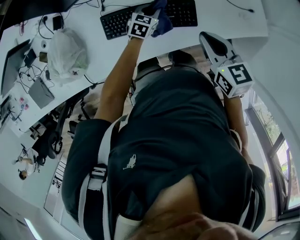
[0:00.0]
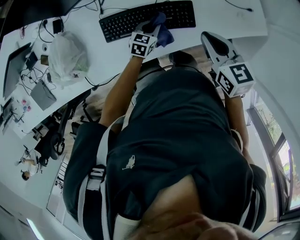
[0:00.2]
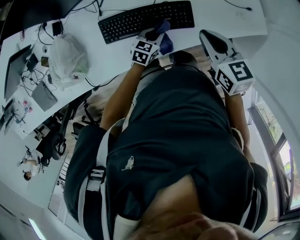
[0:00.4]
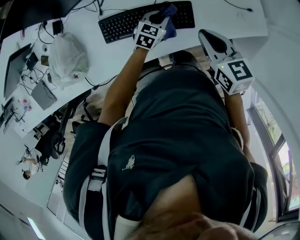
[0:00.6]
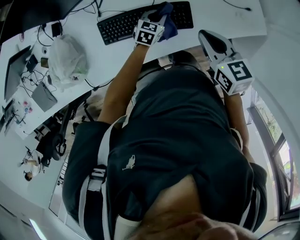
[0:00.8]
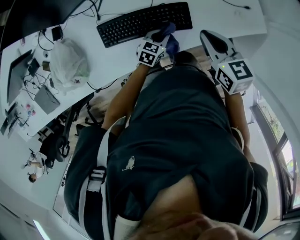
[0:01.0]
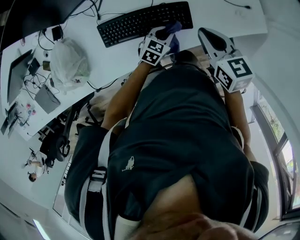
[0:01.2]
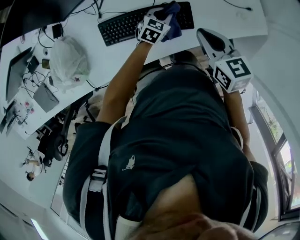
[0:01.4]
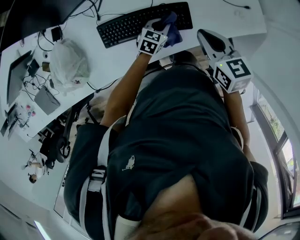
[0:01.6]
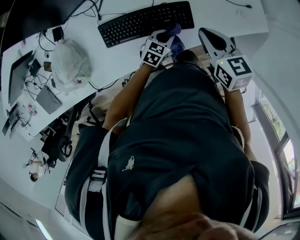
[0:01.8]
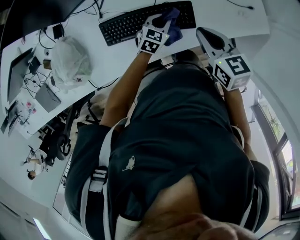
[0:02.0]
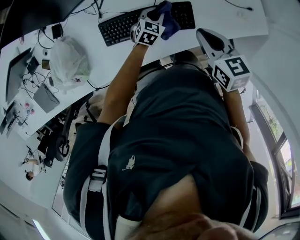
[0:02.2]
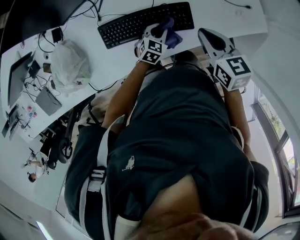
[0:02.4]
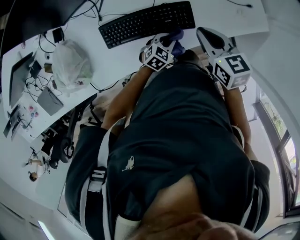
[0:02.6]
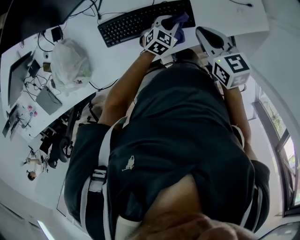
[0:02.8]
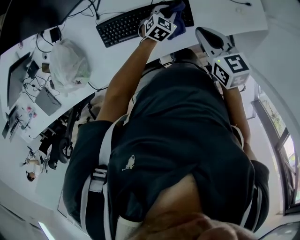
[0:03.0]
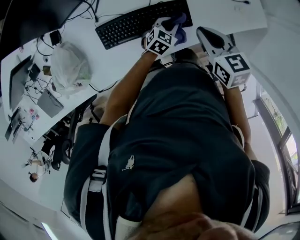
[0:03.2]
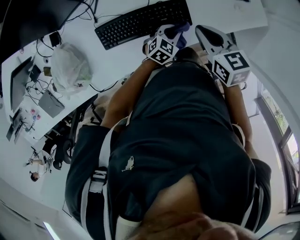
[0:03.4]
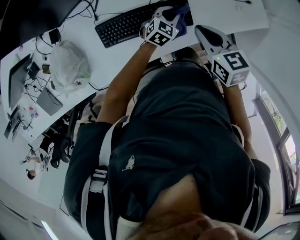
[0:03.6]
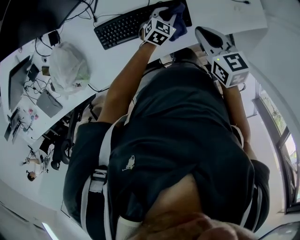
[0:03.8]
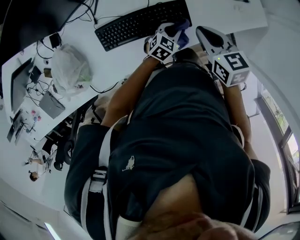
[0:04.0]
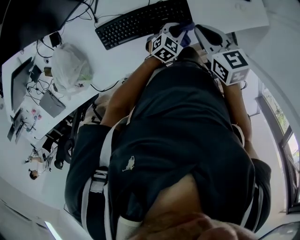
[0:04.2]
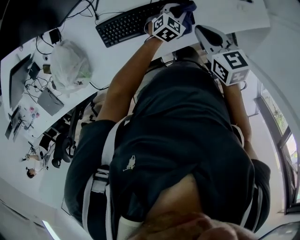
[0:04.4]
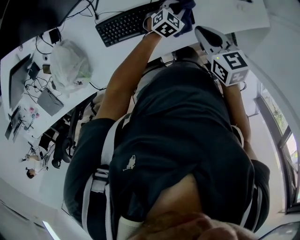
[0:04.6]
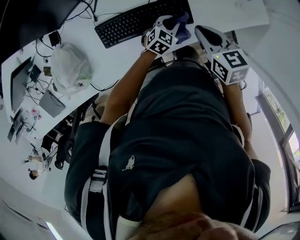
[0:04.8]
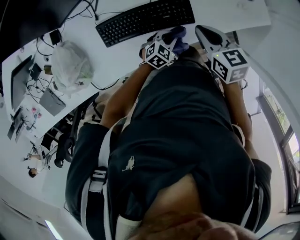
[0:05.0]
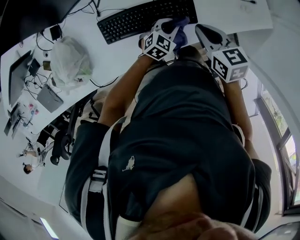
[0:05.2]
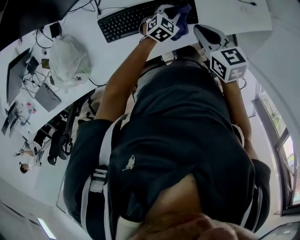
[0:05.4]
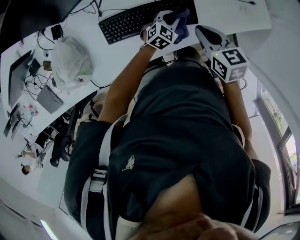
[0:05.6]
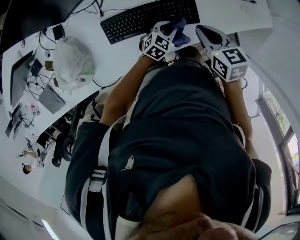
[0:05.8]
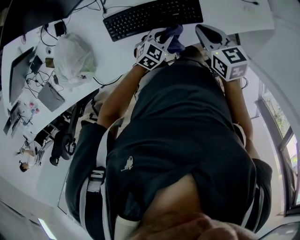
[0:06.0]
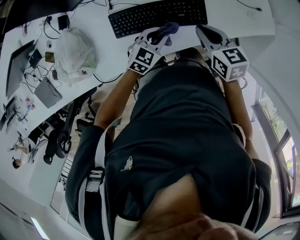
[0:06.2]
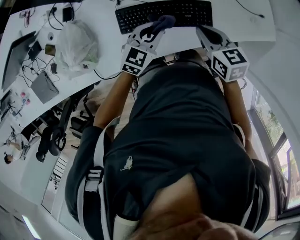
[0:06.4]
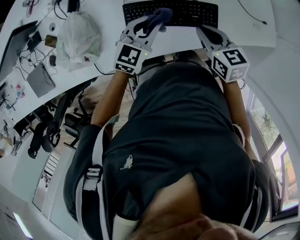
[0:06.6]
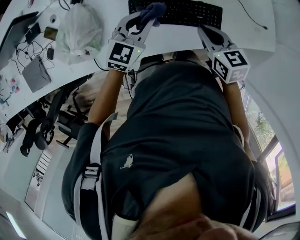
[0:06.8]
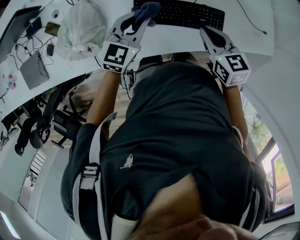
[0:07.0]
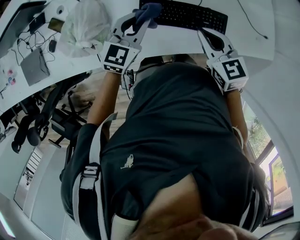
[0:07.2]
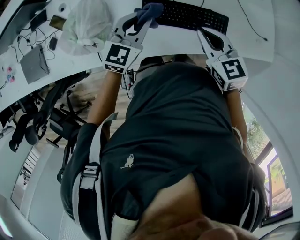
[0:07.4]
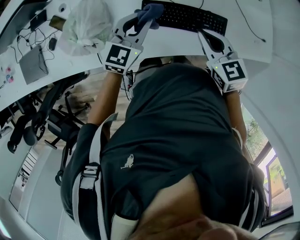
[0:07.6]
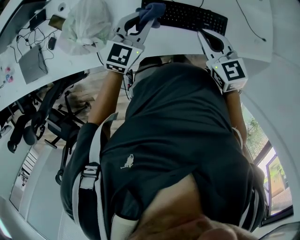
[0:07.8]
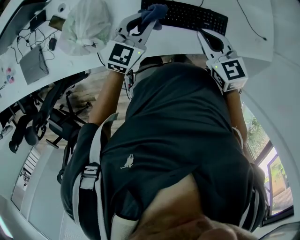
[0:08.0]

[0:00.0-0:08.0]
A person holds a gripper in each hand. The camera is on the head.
0:00.0 to 0:01.6: The left gripper swings forward and backward, some 10 cm each way, with 4 reversals.
0:01.6 to 0:03.2: The left gripper goes forward and backward, roughly 15 cm each way, reversing 4 times.
0:03.2 to 0:04.8: The left gripper swings forward and backward, roughly 10 cm each way, with 3 reversals.
0:04.8 to 0:06.4: The left gripper travels to the left and upward by roughly 20 cm. The right gripper shifts roughly 10 cm to the left.
0:06.4 to 0:08.0: The grippers both shift to the left and upward by approximately 15 cm. The right gripper changes its angle by approximately 20 degrees.

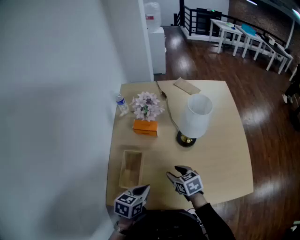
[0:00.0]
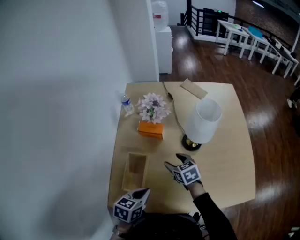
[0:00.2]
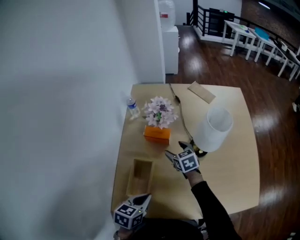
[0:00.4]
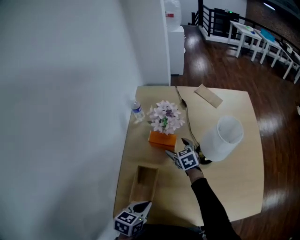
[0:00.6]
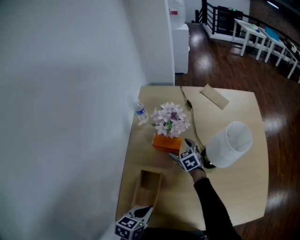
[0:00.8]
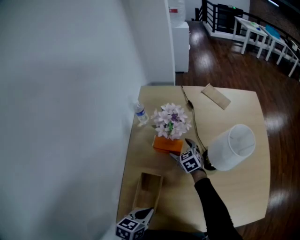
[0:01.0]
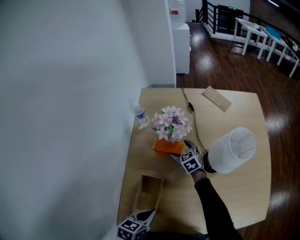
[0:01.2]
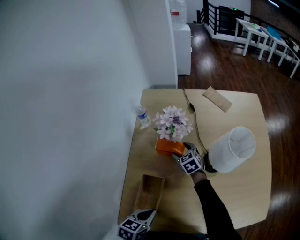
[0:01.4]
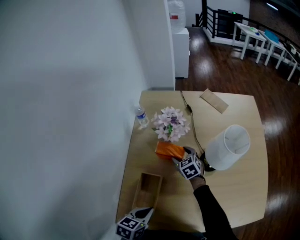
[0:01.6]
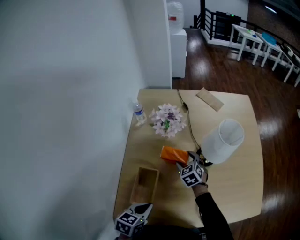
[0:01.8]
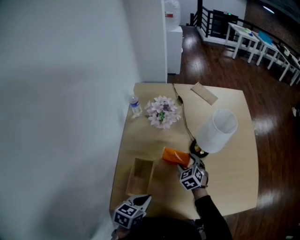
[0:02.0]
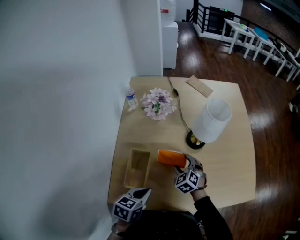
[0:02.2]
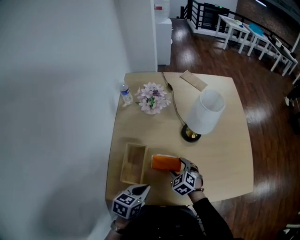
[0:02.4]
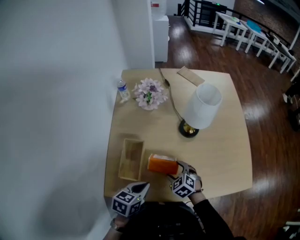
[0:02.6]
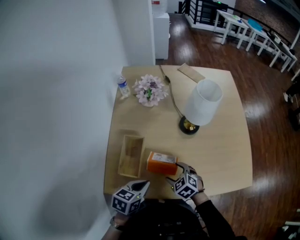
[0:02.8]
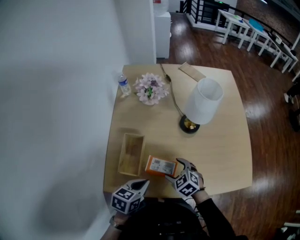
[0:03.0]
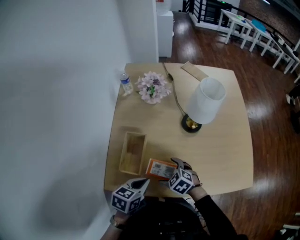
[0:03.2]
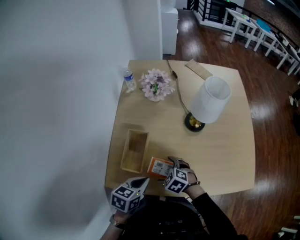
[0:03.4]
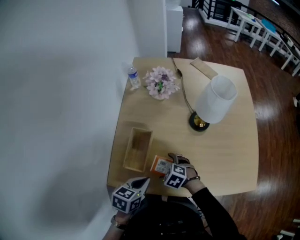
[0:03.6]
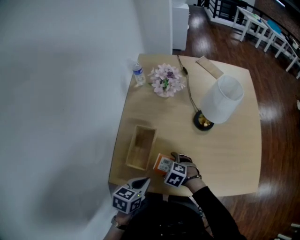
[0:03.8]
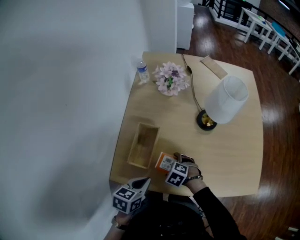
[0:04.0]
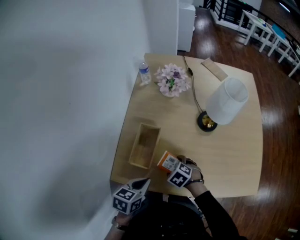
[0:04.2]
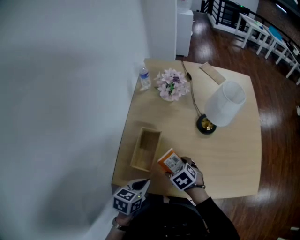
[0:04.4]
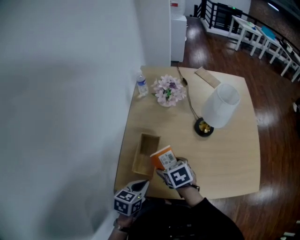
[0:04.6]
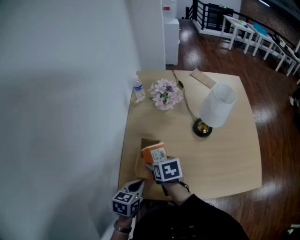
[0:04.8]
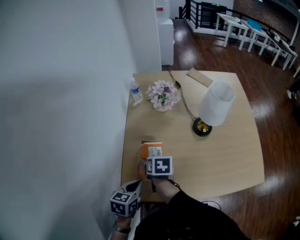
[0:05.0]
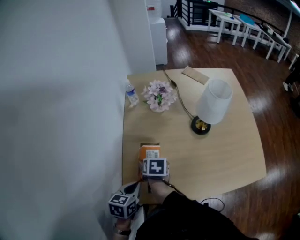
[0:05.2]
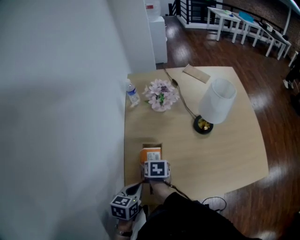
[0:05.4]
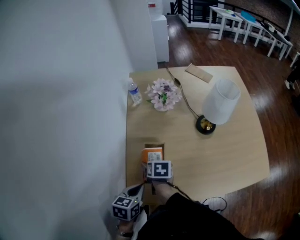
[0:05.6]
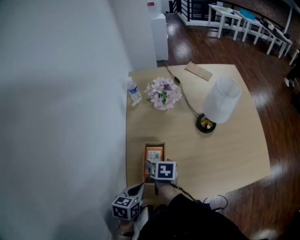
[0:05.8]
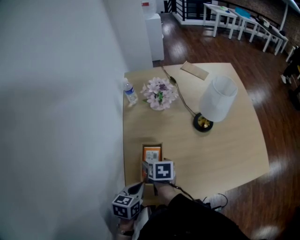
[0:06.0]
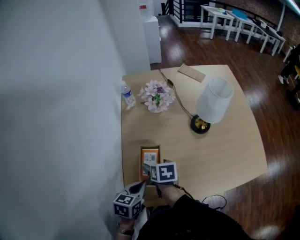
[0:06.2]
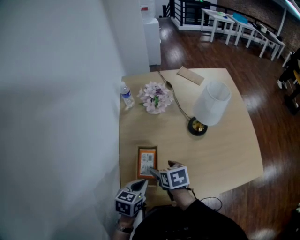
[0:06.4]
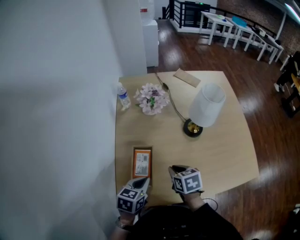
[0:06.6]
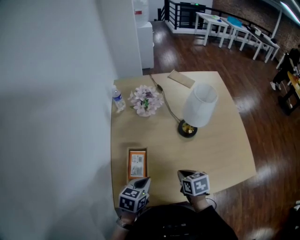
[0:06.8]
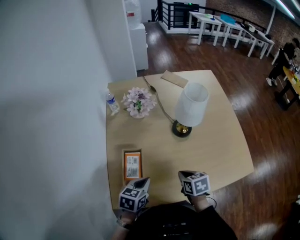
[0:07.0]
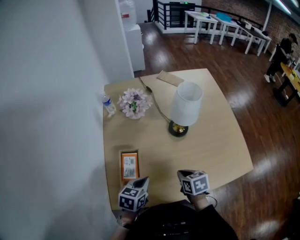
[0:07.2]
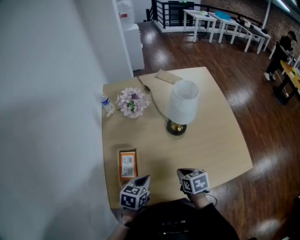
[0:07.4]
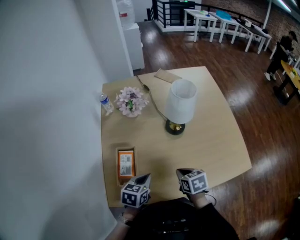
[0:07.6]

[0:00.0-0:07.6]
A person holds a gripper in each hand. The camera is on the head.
0:00.0 to 0:01.6: The left gripper is displaced to the left by some 5 cm, while the right gripper is displaced forward by some 25 cm, and swivels about 20 degrees.
0:01.6 to 0:03.0: The left gripper shifts some 10 cm backward and to the right; the right gripper travels backward by approximately 30 cm.
0:03.0 to 0:04.6: Both grippers travel together to the left, roughly 10 cm. The right gripper changes its angle by about 30 degrees.
0:04.6 to 0:06.0: Both grippers travel together to the left and forward, some 10 cm. The right gripper swivels about 40 degrees.
0:06.0 to 0:07.6: The left gripper is displaced to the right by about 15 cm, while the right gripper goes roughly 25 cm to the right, and closes.

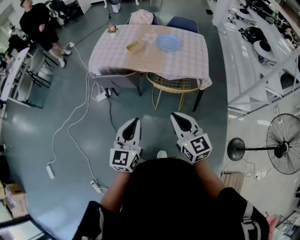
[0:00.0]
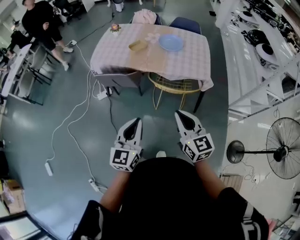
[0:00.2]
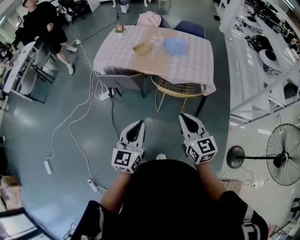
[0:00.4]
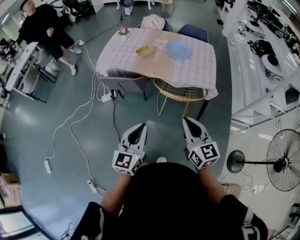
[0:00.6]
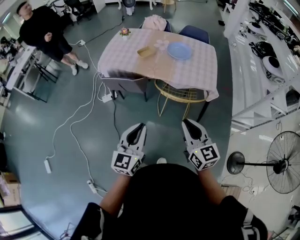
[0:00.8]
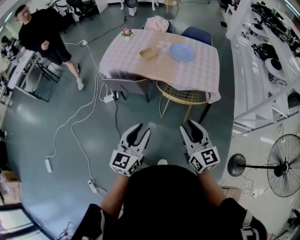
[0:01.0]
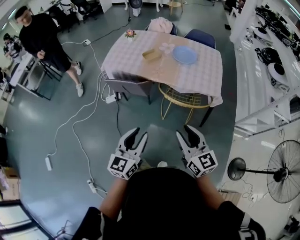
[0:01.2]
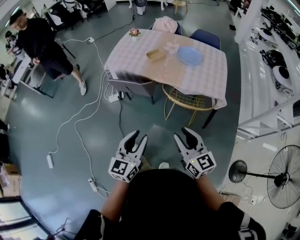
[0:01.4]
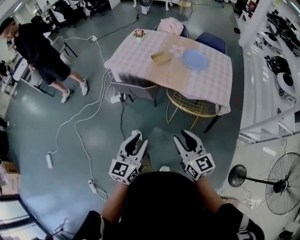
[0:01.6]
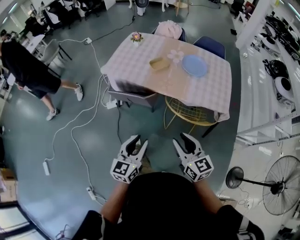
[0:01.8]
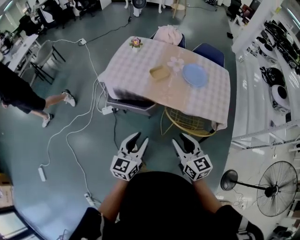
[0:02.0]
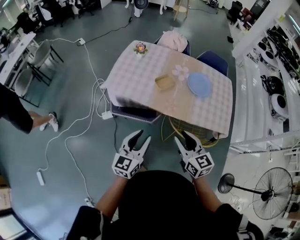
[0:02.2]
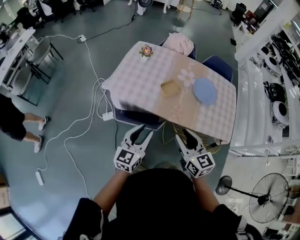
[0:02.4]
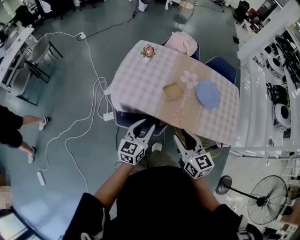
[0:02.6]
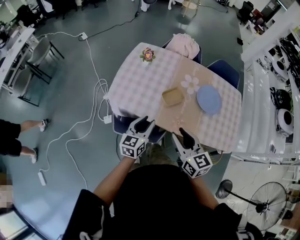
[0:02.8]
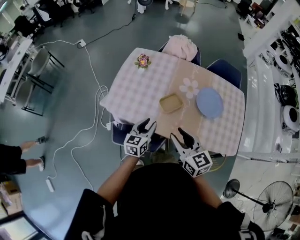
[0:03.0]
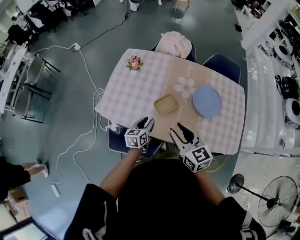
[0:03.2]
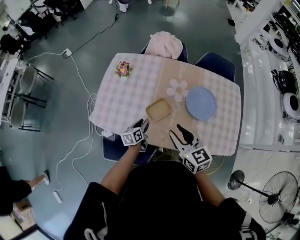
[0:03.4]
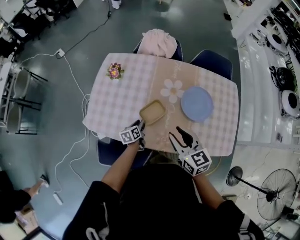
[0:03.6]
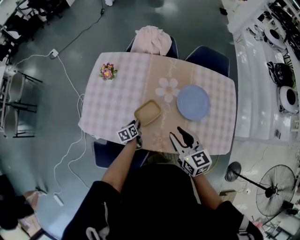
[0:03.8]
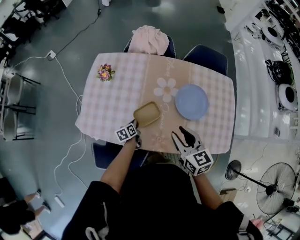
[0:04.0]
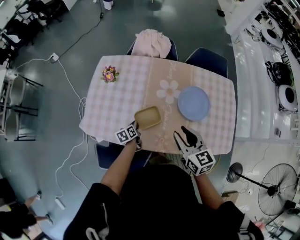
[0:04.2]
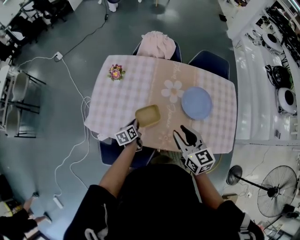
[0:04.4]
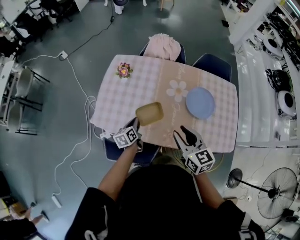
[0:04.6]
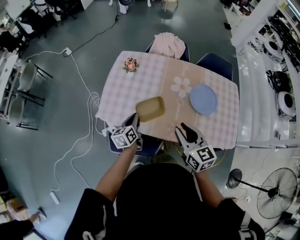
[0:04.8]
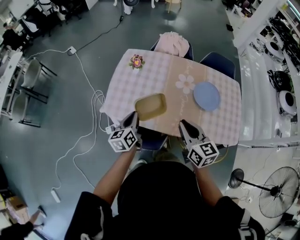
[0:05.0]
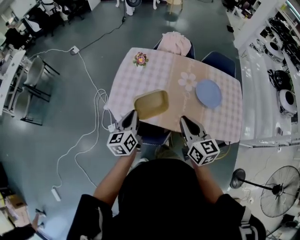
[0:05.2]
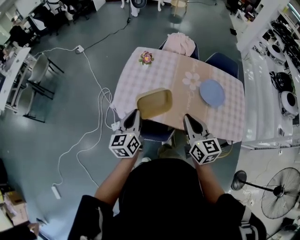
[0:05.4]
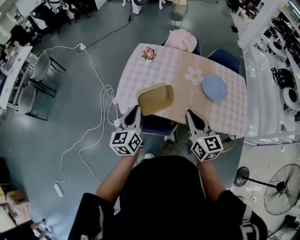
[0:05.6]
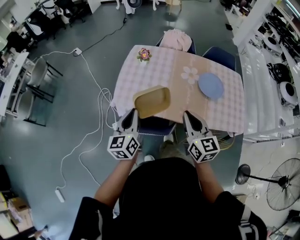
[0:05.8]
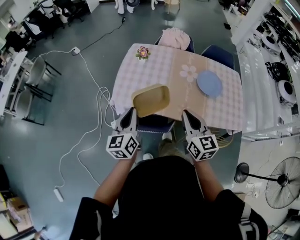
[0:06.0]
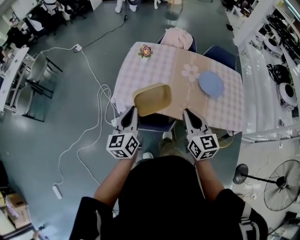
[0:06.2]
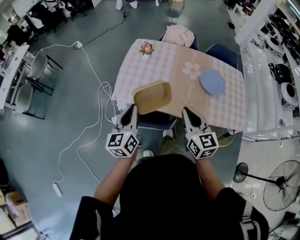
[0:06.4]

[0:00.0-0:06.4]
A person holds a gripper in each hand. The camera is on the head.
0:00.0 to 0:01.6: The right gripper goes some 10 cm forward and downward, and opens up. The left gripper is displaced downward and forward by roughly 10 cm, and opens.
0:01.6 to 0:03.2: Both grippers are carried forward, approximately 60 cm. The left gripper rotates some 30 degrees.
0:03.2 to 0:04.8: The right gripper goes to the right and returns, some 10 cm each way; the left gripper is displaced to the left by some 10 cm, reaches roughly 15 cm downward, then returns, and closes.
0:04.8 to 0:06.4: The right gripper goes some 15 cm backward and to the left, and closes its fingers. Meanwhile the left gripper goes approximately 25 cm upward, backward and to the left, and swivels approximately 20 degrees.

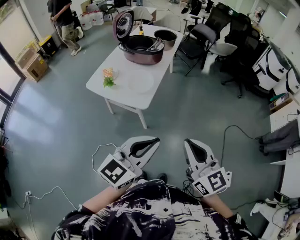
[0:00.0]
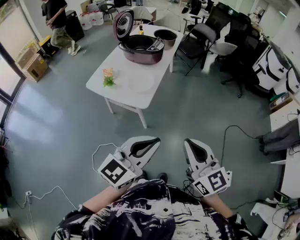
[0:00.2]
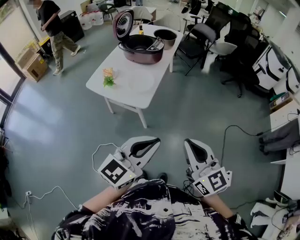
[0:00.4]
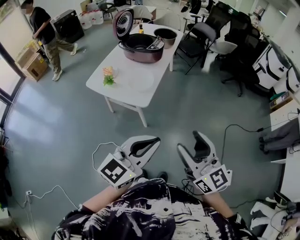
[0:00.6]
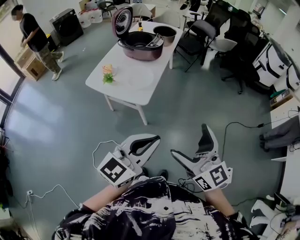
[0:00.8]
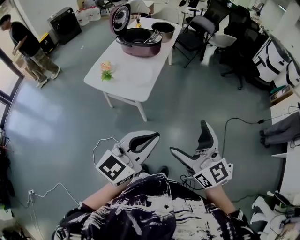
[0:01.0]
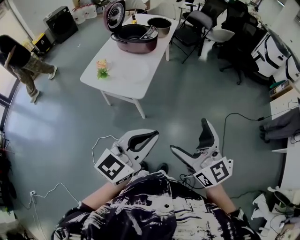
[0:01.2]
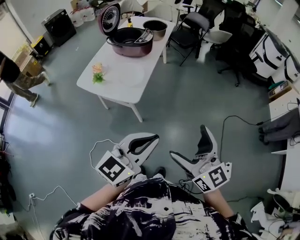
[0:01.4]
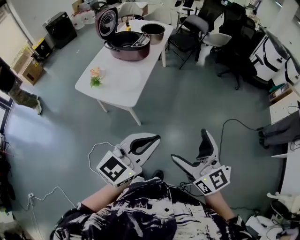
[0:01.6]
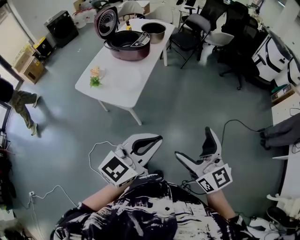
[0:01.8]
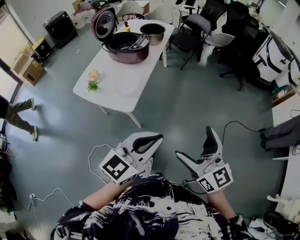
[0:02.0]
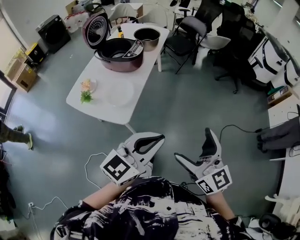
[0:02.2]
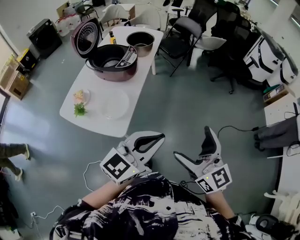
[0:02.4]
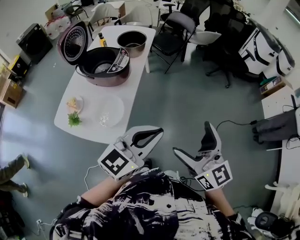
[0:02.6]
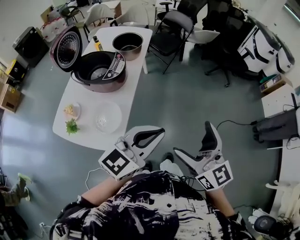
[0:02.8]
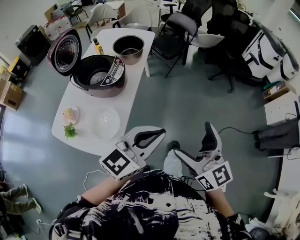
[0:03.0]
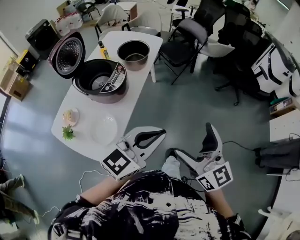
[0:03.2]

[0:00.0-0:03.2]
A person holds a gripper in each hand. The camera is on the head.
0:00.0 to 0:01.6: Both grippers travel together to the right, about 10 cm. The right gripper opens.
0:01.6 to 0:03.2: Both grippers are carried forward, about 50 cm.
